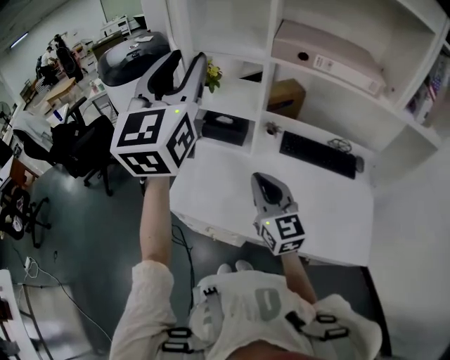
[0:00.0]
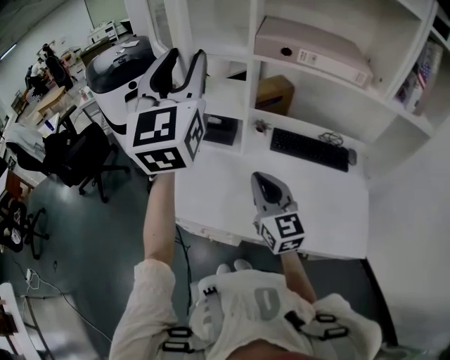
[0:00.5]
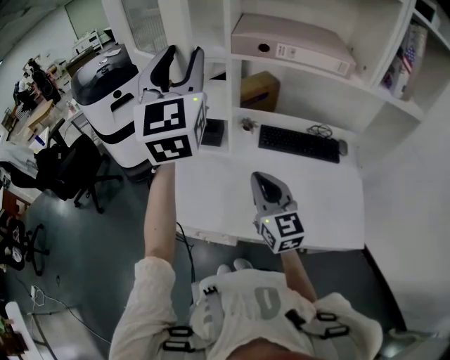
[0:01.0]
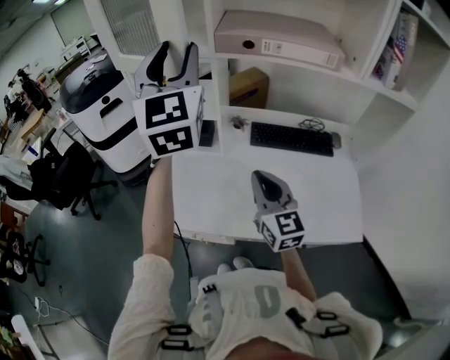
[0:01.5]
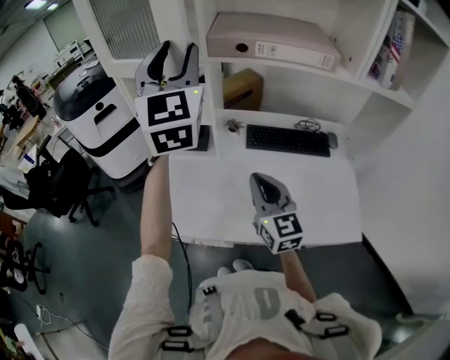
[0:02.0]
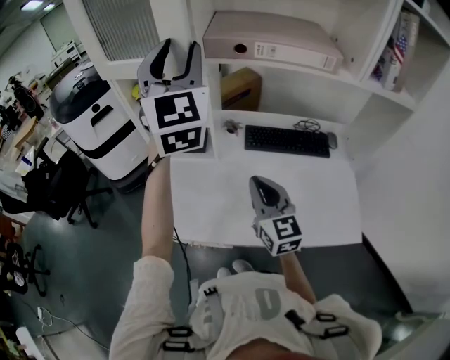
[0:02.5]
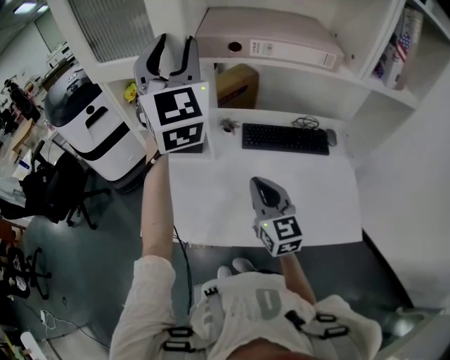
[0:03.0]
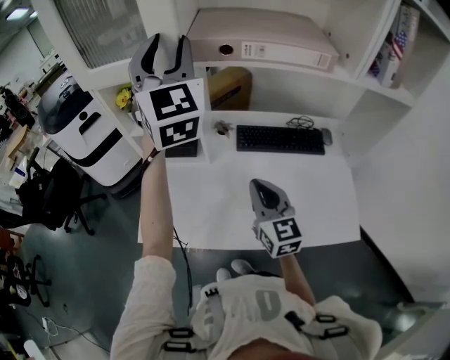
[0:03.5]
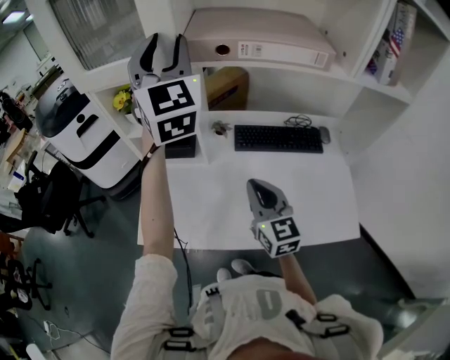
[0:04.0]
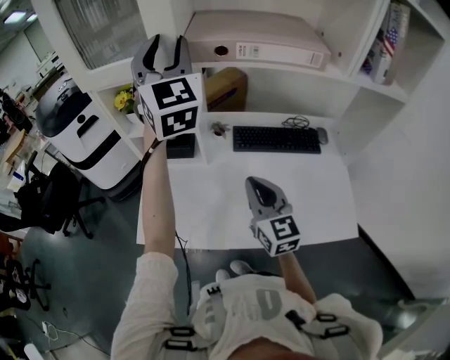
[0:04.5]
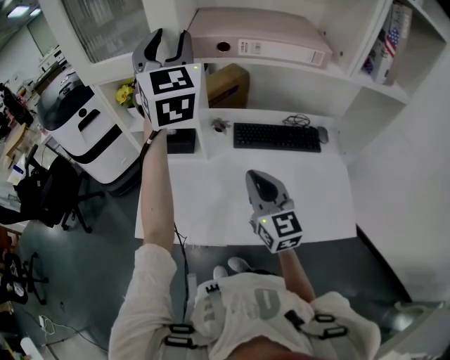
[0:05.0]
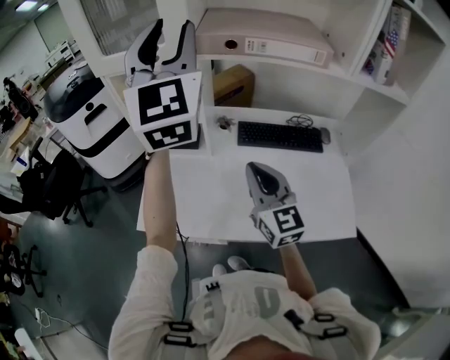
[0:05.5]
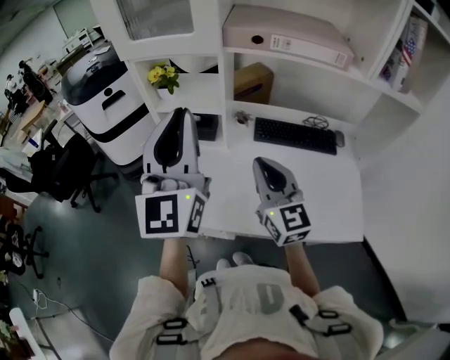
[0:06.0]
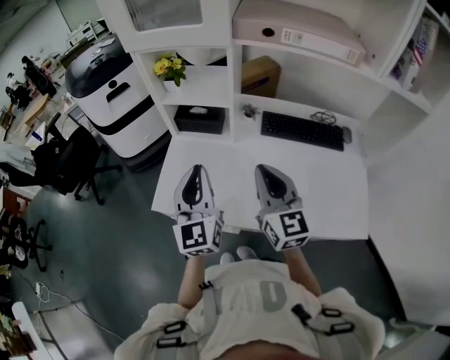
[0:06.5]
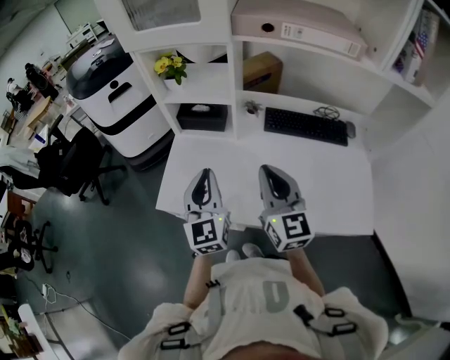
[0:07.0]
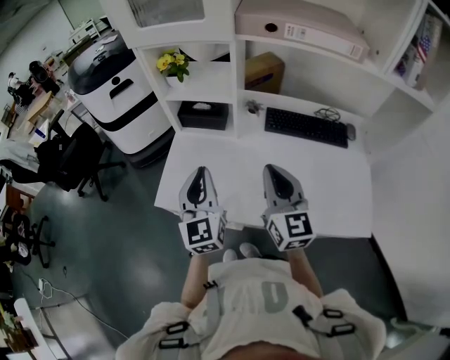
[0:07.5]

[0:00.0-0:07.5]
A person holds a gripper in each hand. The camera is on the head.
0:00.0 to 0:02.0: The right gripper travels to the right by approximately 10 cm; the left gripper moves to the right and forward, some 15 cm.
0:02.0 to 0:04.0: The right gripper moves about 5 cm, while the left gripper heads forward, covering about 10 cm.
0:04.0 to 0:05.5: The left gripper moves backward, about 10 cm. The right gripper heads upward, covering roughly 5 cm.
0:05.5 to 0:07.5: The left gripper travels downward by approximately 35 cm, turns by about 30 degrees, and closes up. Meanwhile the right gripper moves approximately 5 cm.

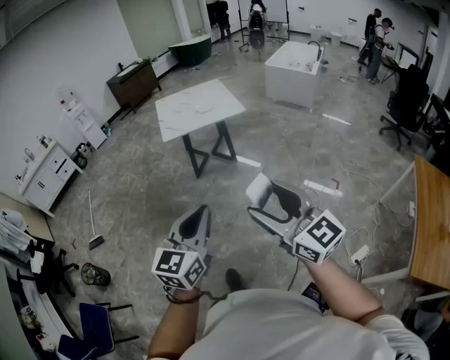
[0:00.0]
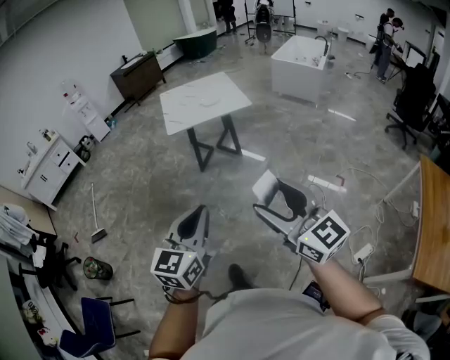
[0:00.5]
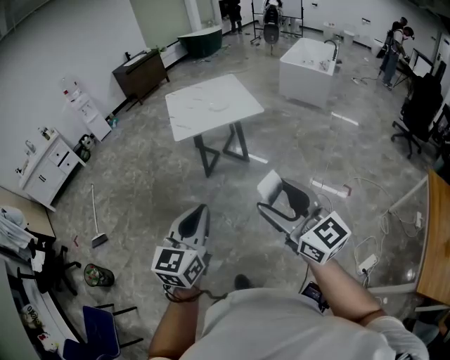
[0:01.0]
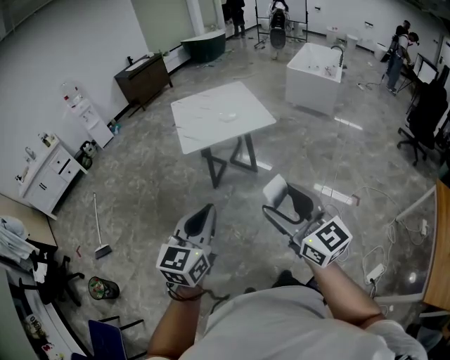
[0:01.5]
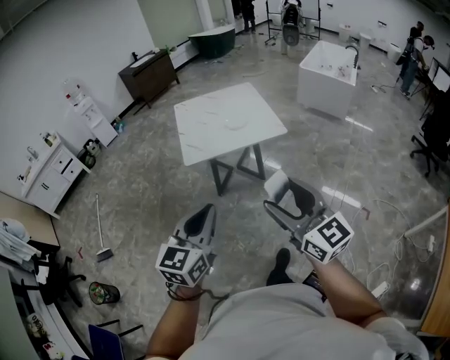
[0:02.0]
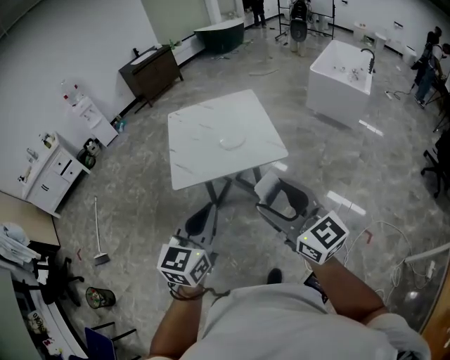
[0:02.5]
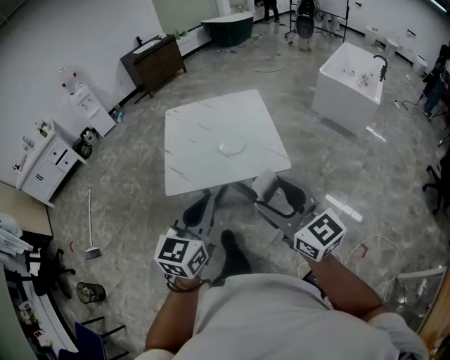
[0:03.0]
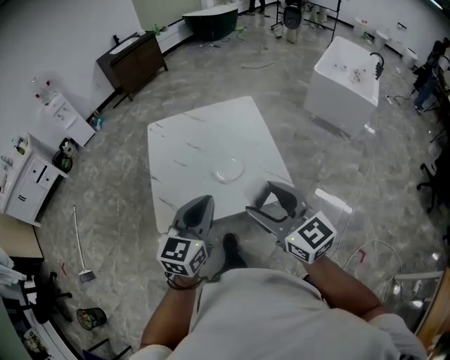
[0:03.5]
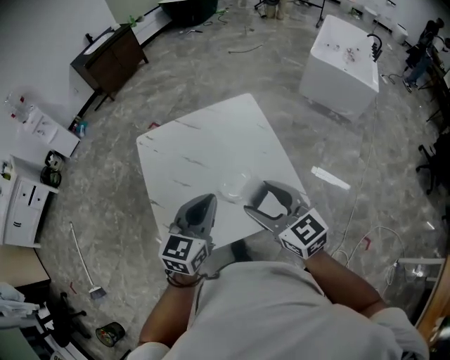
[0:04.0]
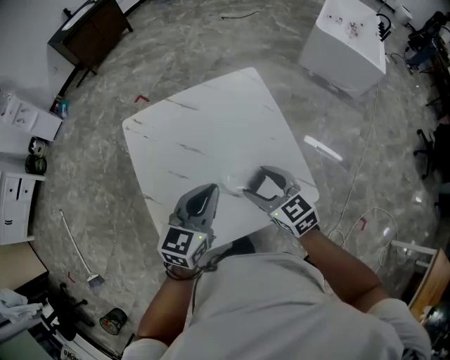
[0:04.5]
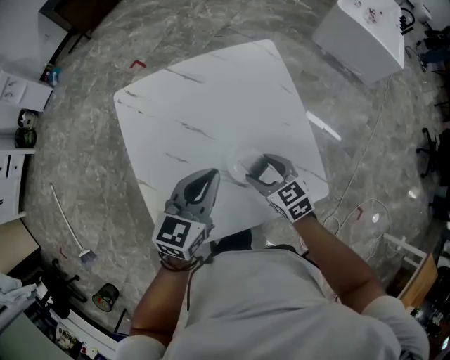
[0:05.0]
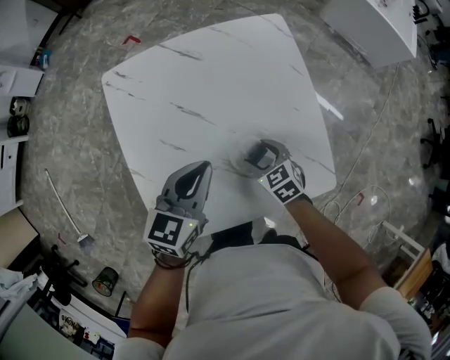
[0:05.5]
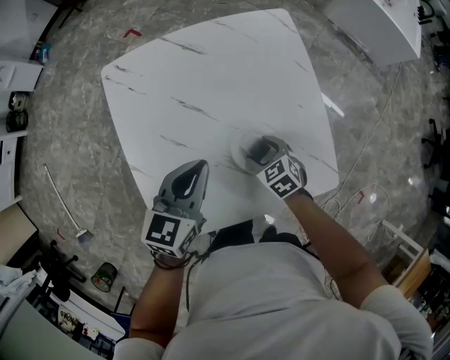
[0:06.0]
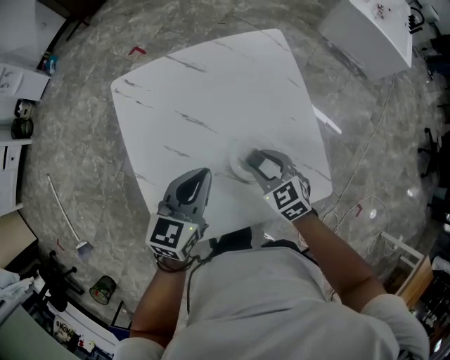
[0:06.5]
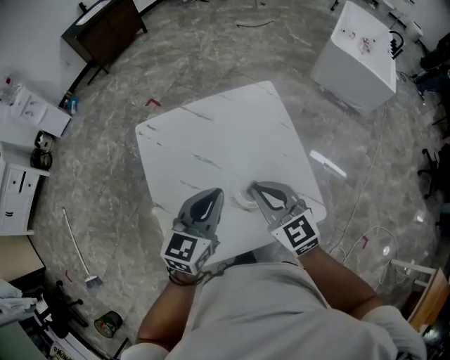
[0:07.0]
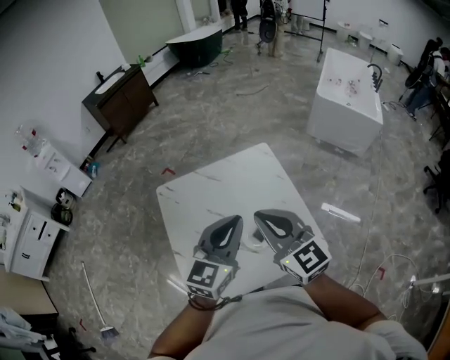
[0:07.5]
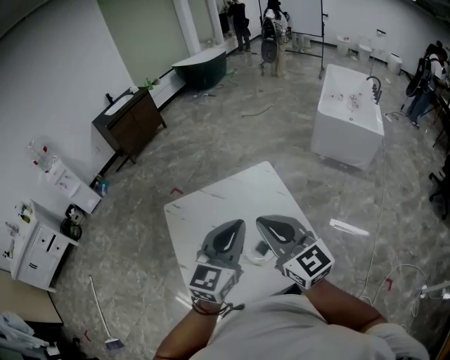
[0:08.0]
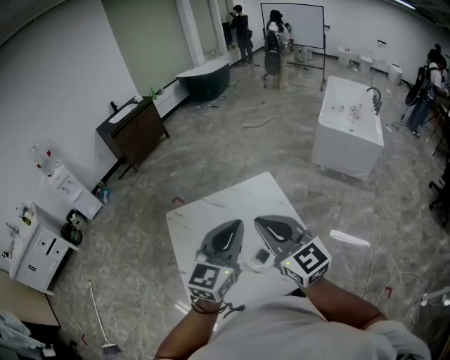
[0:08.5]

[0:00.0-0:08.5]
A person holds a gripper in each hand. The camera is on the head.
0:00.0 to 0:02.0: The two grippers travel together, forward, roughly 40 cm.
0:02.0 to 0:04.0: Both grippers are carried forward, about 80 cm. The right gripper rotates roughly 20 degrees.
0:04.0 to 0:06.5: The two grippers go approximately 30 cm downward and forward. The right gripper turns by about 30 degrees, and closes its fingers.
0:06.5 to 0:08.5: Both grippers move upward, some 40 cm. The right gripper tilts its fingers approximately 40 degrees upward, and closes its fingers, while the left gripper rotates roughly 30 degrees.

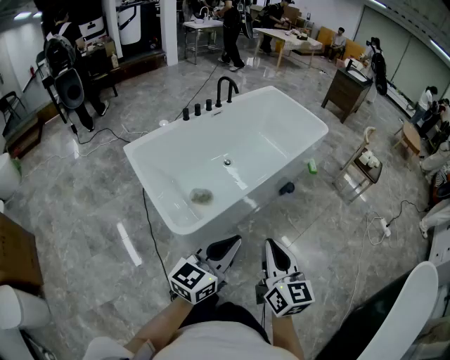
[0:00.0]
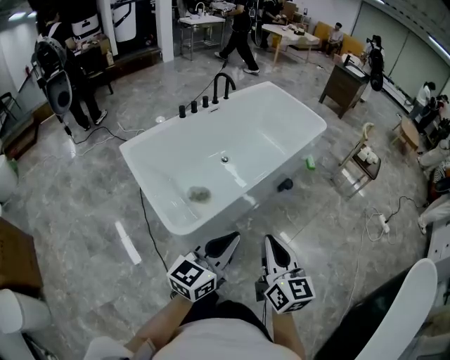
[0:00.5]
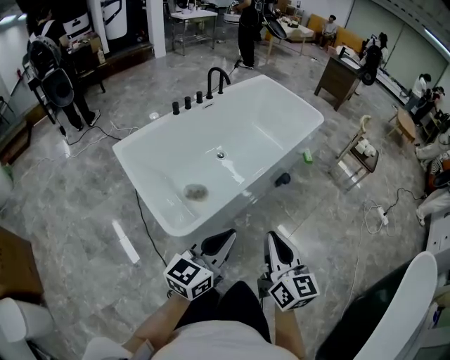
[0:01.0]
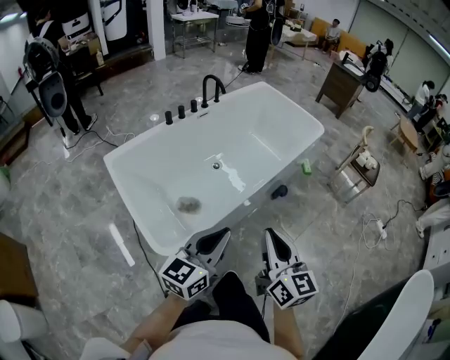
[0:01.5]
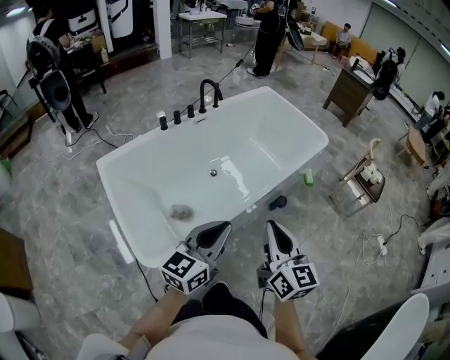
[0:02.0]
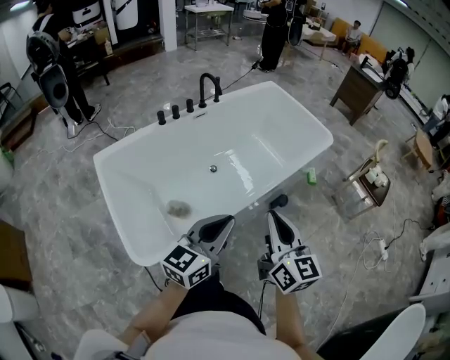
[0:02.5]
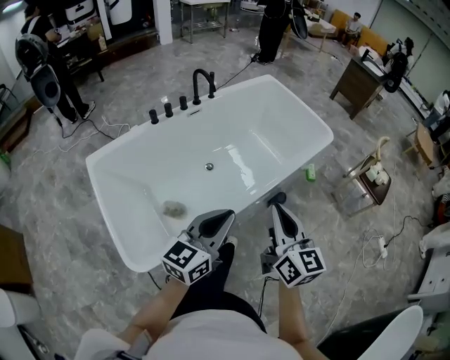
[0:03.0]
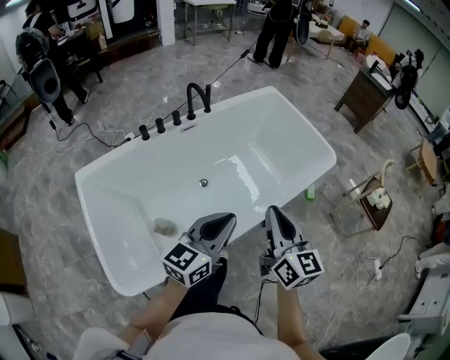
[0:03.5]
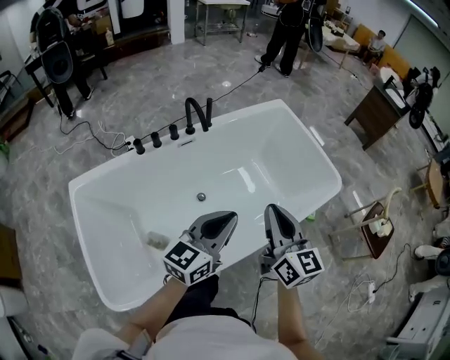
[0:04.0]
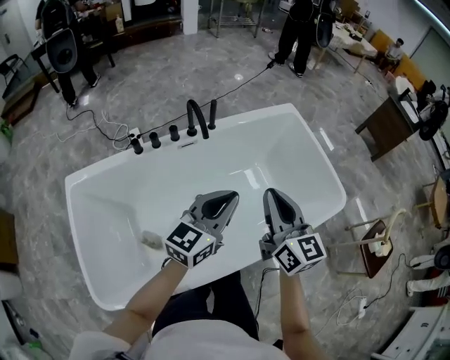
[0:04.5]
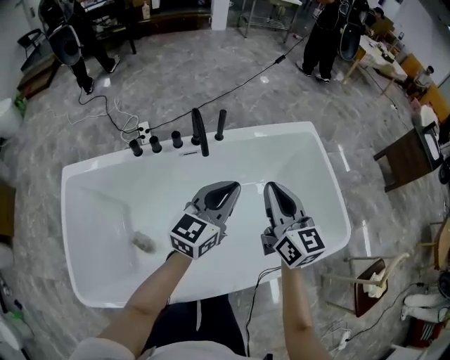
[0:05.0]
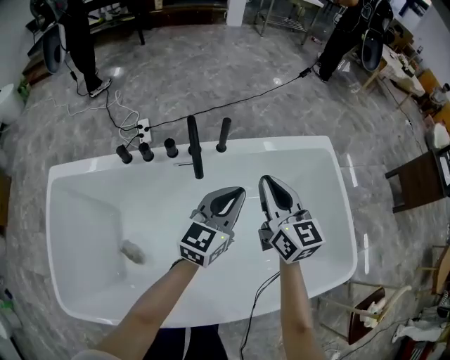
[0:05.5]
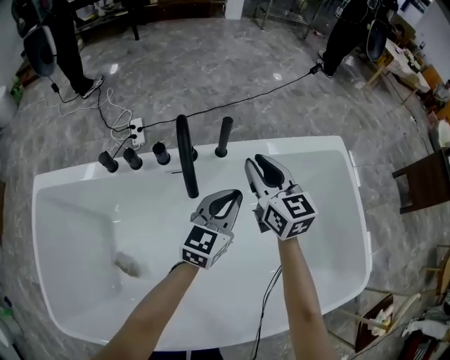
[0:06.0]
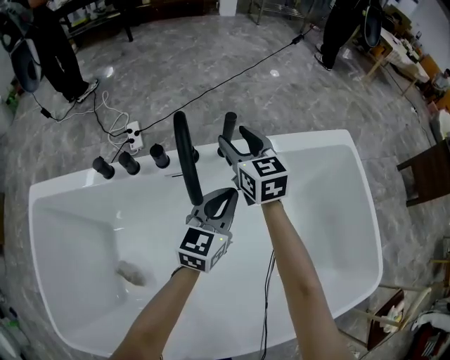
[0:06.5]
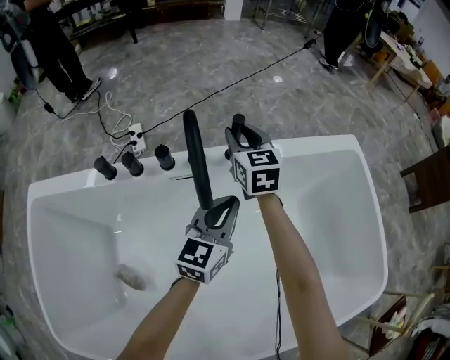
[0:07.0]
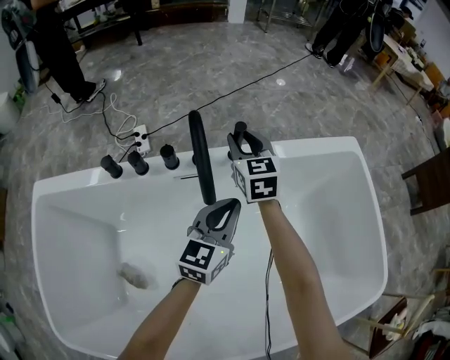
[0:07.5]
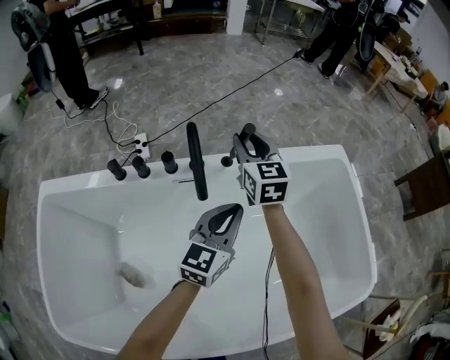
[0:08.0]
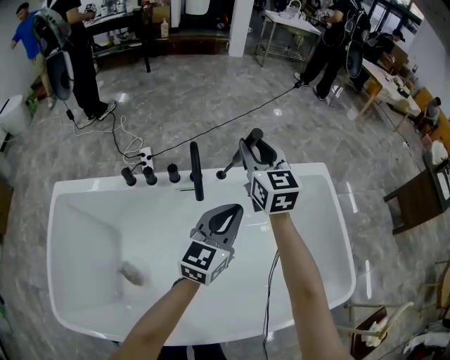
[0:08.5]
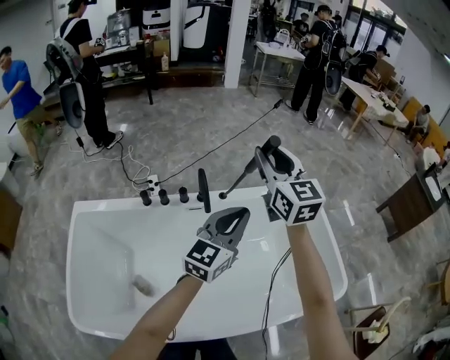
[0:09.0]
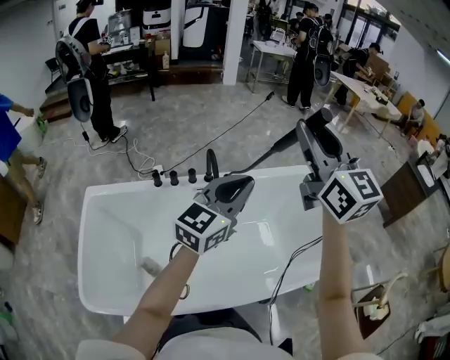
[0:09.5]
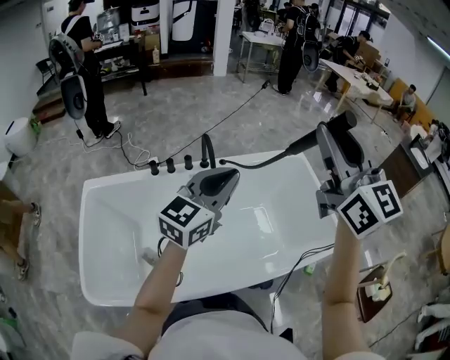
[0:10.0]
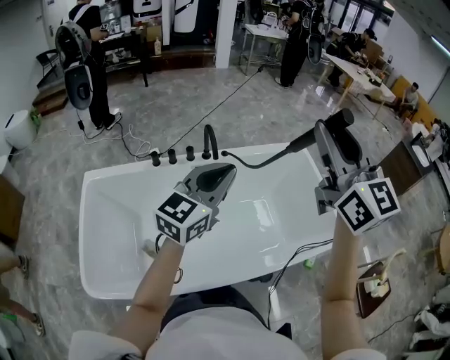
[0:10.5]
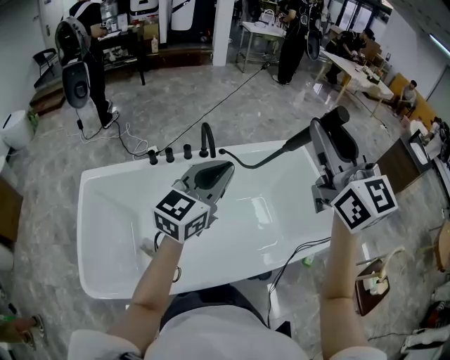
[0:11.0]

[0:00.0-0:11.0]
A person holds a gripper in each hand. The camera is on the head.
0:00.0 to 0:02.0: The grippers both shift forward by approximately 25 cm.
0:02.0 to 0:03.5: The two grippers go approximately 25 cm forward.
0:03.5 to 0:05.5: The pair of grippers is taken some 50 cm. The right gripper changes its angle by some 30 degrees. The left gripper changes its angle by approximately 30 degrees.
0:05.5 to 0:07.5: The right gripper is displaced forward, downward and to the left by about 30 cm, and opens, while the left gripper heads downward, covering some 15 cm.
0:07.5 to 0:09.0: Both grippers move upward, roughly 35 cm.
0:09.0 to 0:11.0: The left gripper travels backward and upward by approximately 20 cm. Meanwhile the right gripper heads backward and upward, covering some 30 cm.
